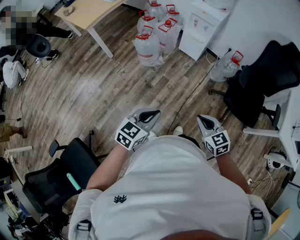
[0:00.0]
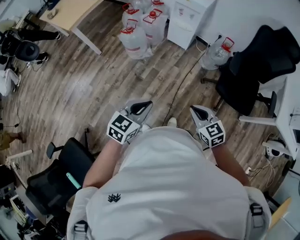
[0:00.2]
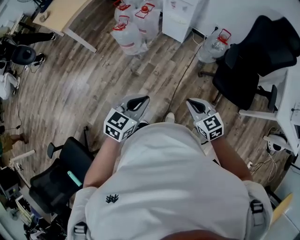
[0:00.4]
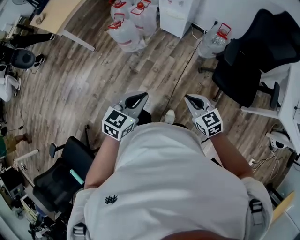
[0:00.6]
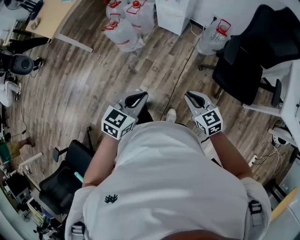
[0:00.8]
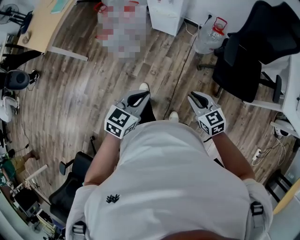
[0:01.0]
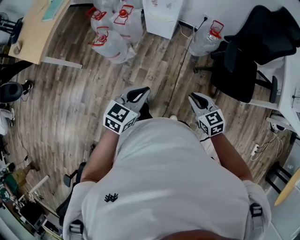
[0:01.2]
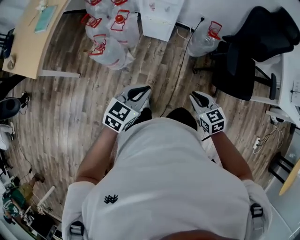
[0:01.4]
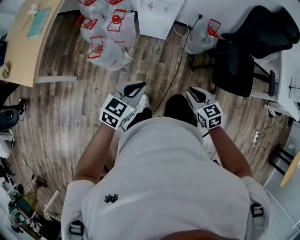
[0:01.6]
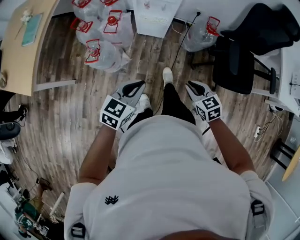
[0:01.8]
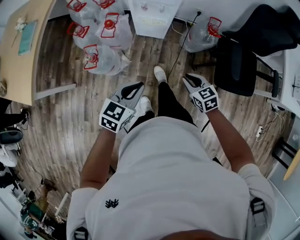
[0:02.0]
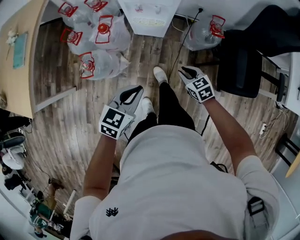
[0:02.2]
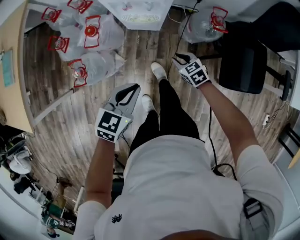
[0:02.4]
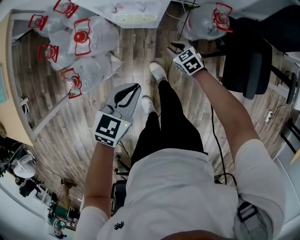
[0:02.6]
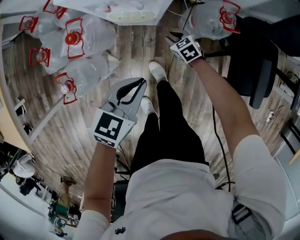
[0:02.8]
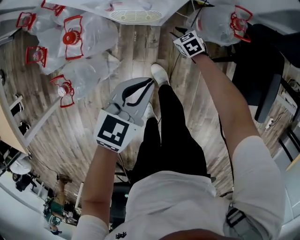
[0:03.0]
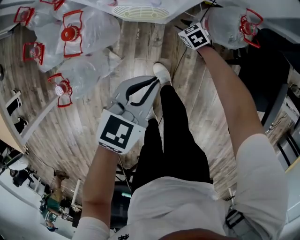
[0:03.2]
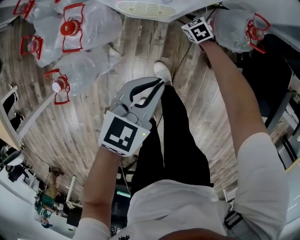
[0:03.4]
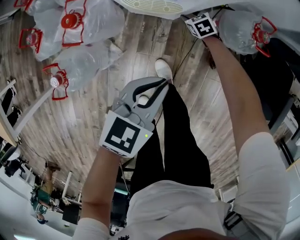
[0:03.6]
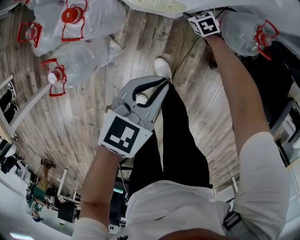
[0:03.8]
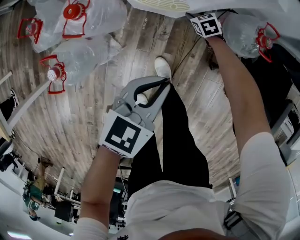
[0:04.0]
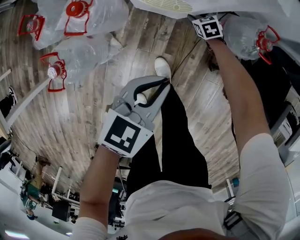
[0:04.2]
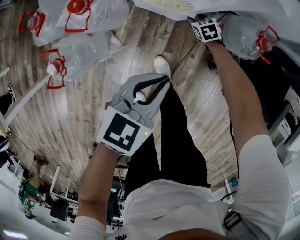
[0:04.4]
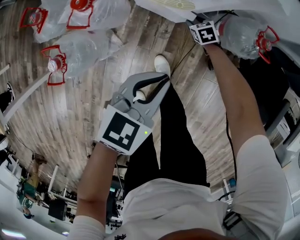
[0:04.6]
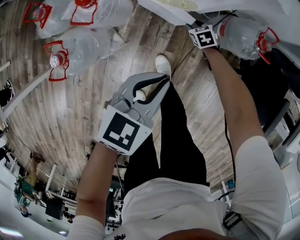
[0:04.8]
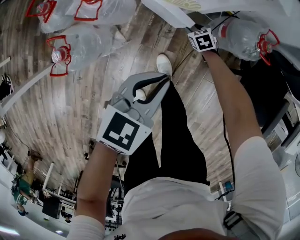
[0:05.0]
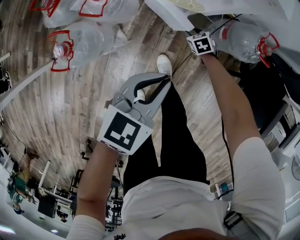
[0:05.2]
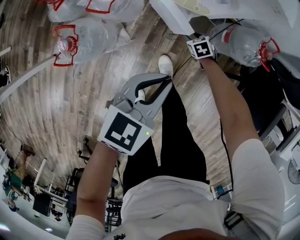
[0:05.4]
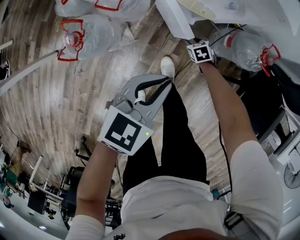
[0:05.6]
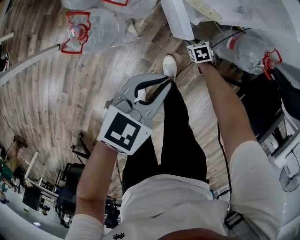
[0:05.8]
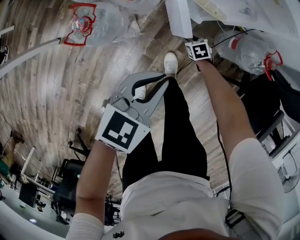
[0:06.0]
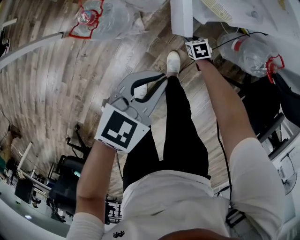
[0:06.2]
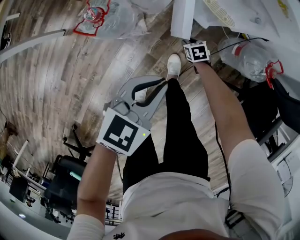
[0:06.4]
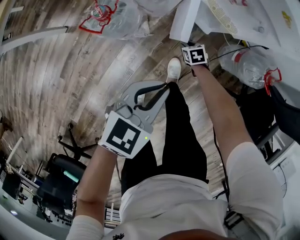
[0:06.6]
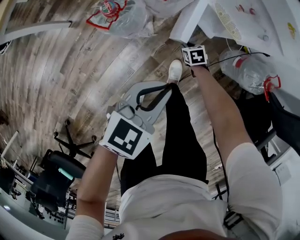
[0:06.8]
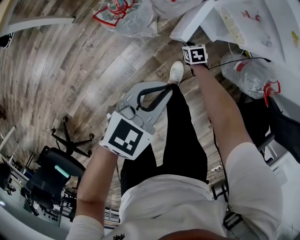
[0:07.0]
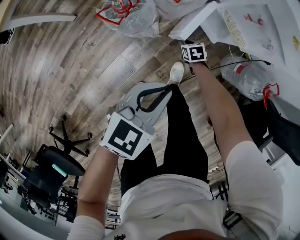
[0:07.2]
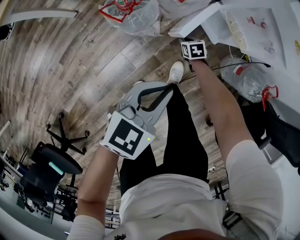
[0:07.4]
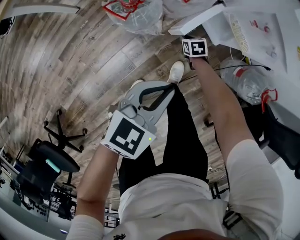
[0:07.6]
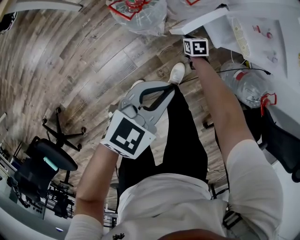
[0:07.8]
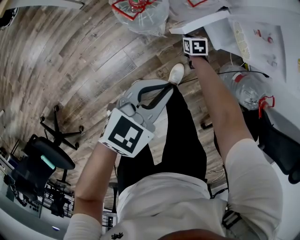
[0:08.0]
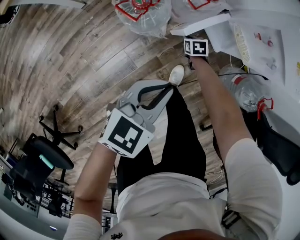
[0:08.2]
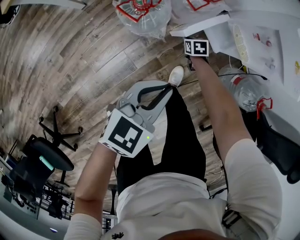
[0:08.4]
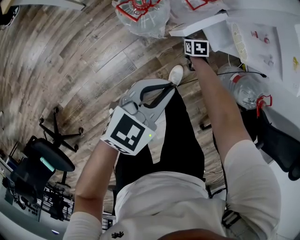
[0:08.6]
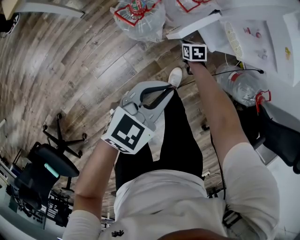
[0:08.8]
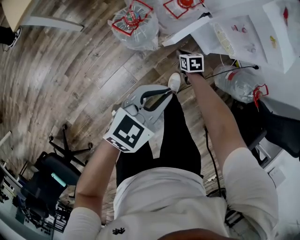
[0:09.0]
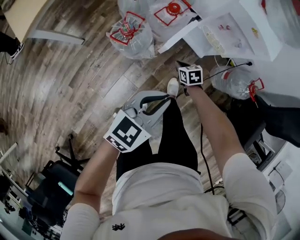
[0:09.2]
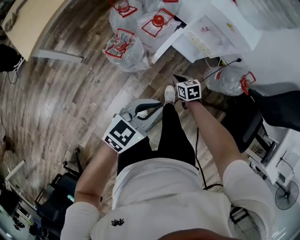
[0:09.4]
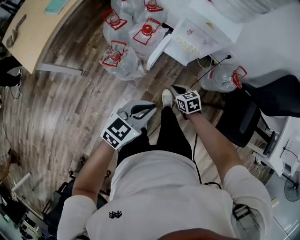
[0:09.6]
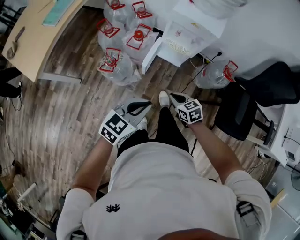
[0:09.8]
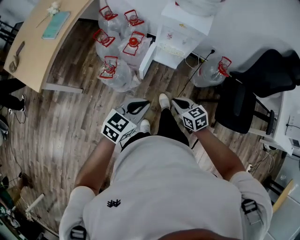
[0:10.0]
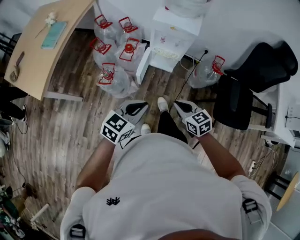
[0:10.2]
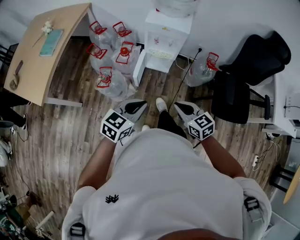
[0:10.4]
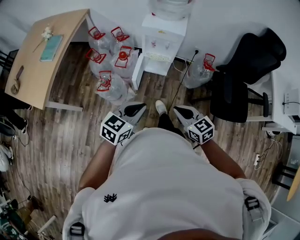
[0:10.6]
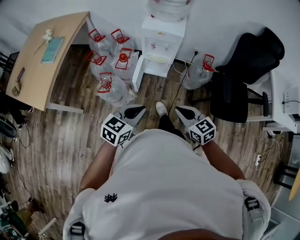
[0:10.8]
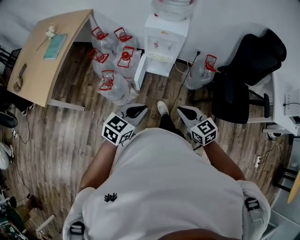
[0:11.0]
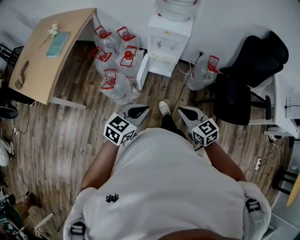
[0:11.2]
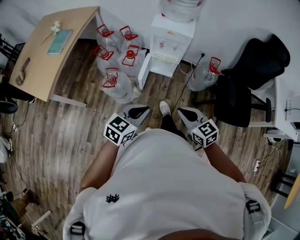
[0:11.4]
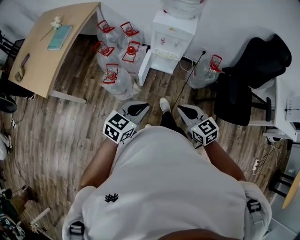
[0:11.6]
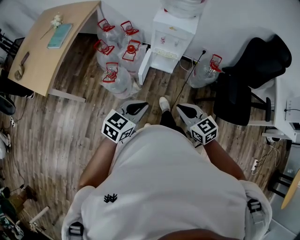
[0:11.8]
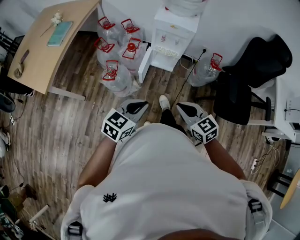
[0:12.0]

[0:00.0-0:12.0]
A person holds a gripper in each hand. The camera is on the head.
0:00.0 to 0:01.6: The grippers both shift forward by some 35 cm. The left gripper turns by roughly 20 degrees; the right gripper swivels some 20 degrees.
0:01.6 to 0:03.0: The right gripper moves forward and downward, approximately 70 cm; the left gripper travels forward and downward by approximately 40 cm.
0:03.0 to 0:04.4: The left gripper shifts by about 5 cm, while the right gripper is displaced downward and forward by roughly 10 cm.
0:04.4 to 0:06.0: The right gripper travels backward and to the left by some 20 cm, while the left gripper travels to the left and backward by some 15 cm.
0:06.0 to 0:07.6: The left gripper goes approximately 10 cm to the left and backward. Meanwhile the right gripper is displaced to the left by some 20 cm.
0:07.6 to 0:09.0: The left gripper moves upward, approximately 5 cm. The right gripper heads upward, covering roughly 10 cm.
0:09.0 to 0:10.4: The right gripper is displaced upward and backward by roughly 50 cm, and tilts its fingers about 30 degrees upward. The left gripper travels upward, backward and to the right by about 20 cm, and turns by approximately 20 degrees.
0:10.4 to 0:12.0: The two grippers go approximately 5 cm backward.

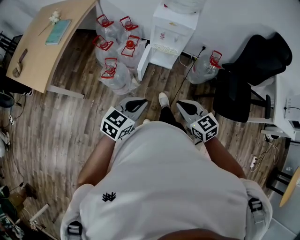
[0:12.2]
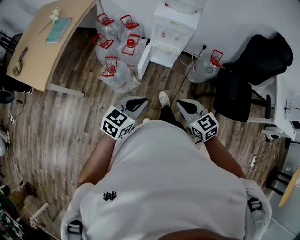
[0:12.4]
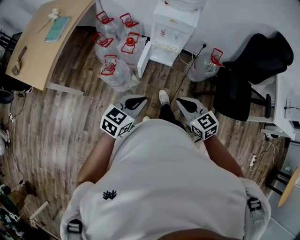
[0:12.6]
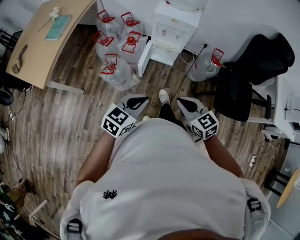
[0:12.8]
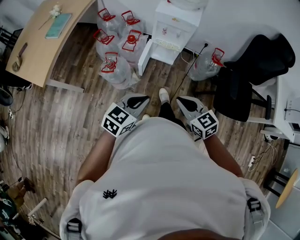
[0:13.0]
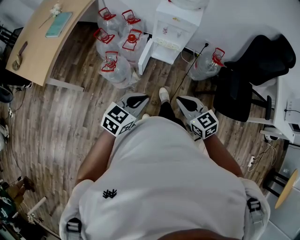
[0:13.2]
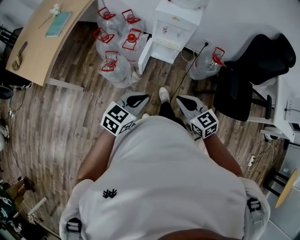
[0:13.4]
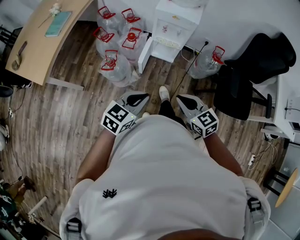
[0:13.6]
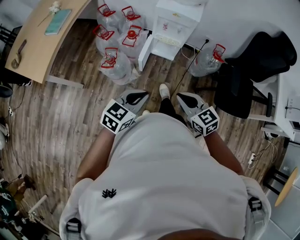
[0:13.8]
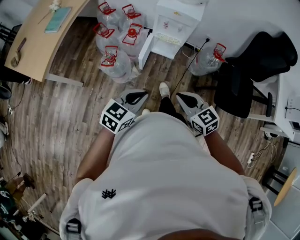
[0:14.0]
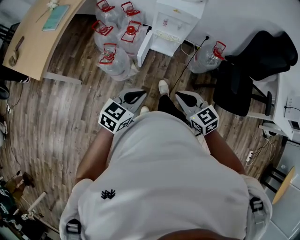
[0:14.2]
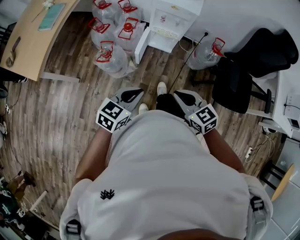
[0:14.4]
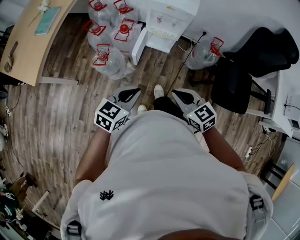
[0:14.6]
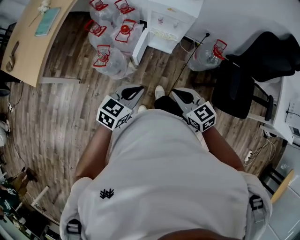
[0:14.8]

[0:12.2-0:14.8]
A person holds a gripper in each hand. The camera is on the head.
0:12.2 to 0:13.4: The two grippers keep their place.
0:13.4 to 0:14.8: The grippers both shift forward by roughly 5 cm.

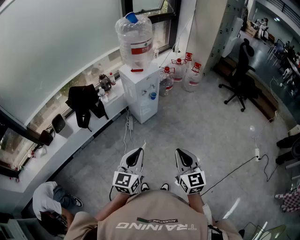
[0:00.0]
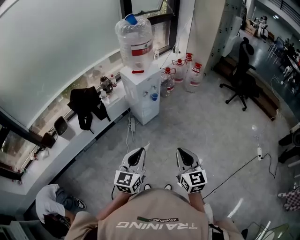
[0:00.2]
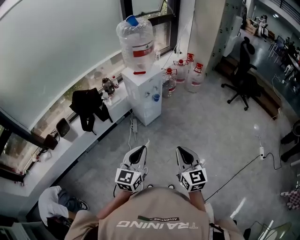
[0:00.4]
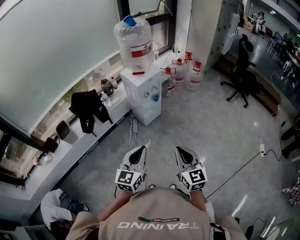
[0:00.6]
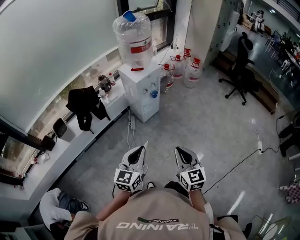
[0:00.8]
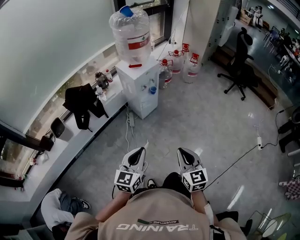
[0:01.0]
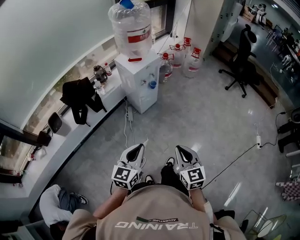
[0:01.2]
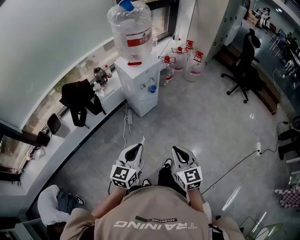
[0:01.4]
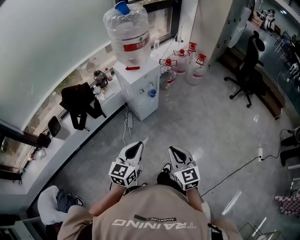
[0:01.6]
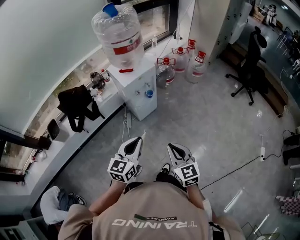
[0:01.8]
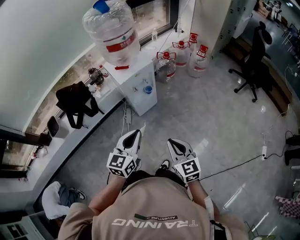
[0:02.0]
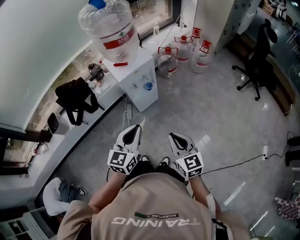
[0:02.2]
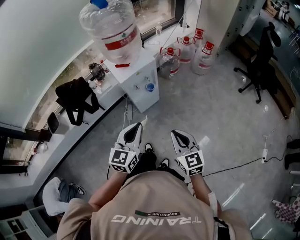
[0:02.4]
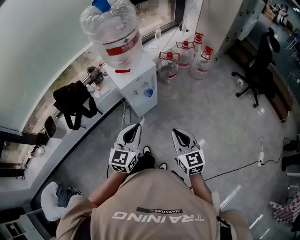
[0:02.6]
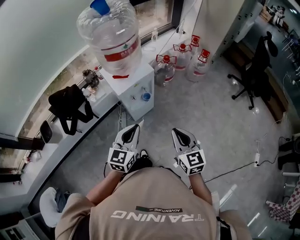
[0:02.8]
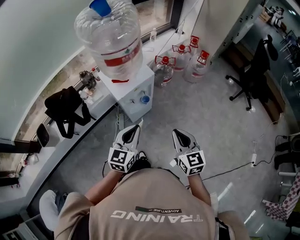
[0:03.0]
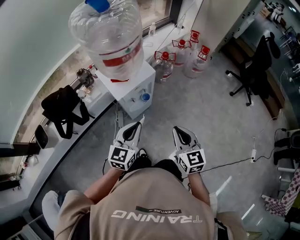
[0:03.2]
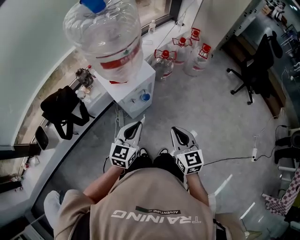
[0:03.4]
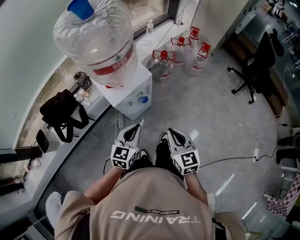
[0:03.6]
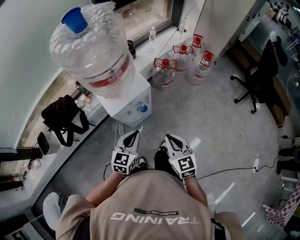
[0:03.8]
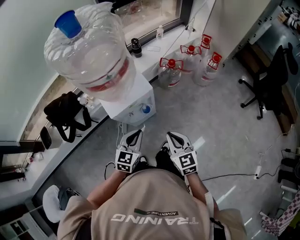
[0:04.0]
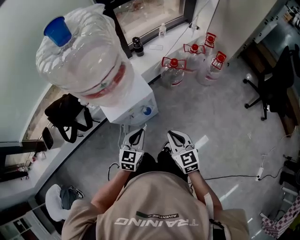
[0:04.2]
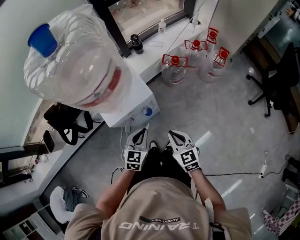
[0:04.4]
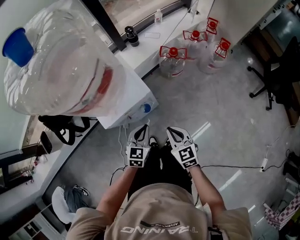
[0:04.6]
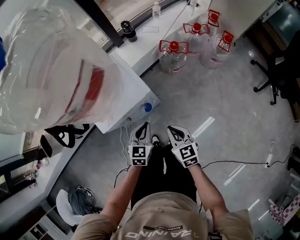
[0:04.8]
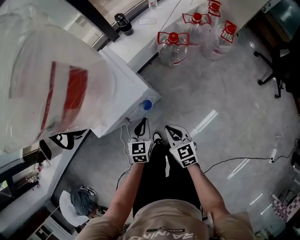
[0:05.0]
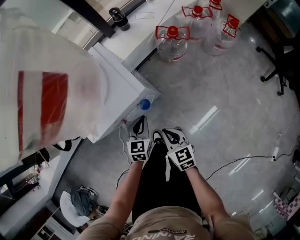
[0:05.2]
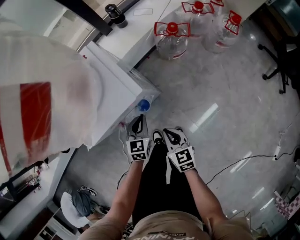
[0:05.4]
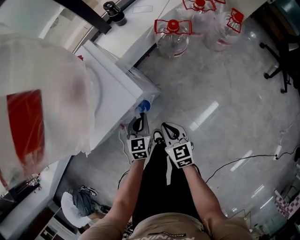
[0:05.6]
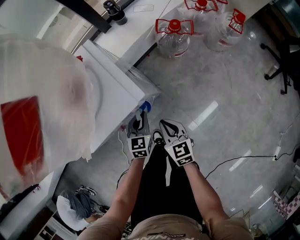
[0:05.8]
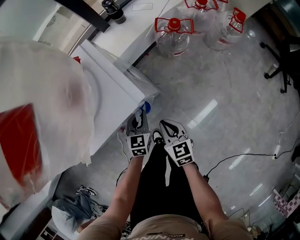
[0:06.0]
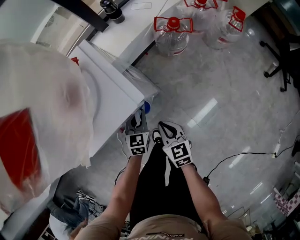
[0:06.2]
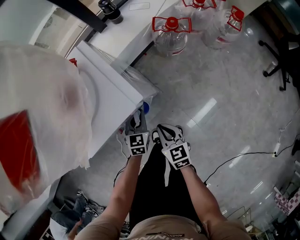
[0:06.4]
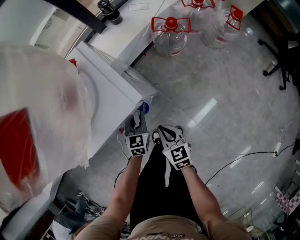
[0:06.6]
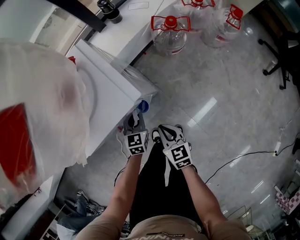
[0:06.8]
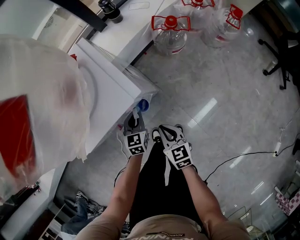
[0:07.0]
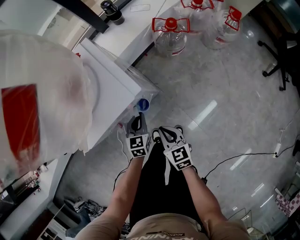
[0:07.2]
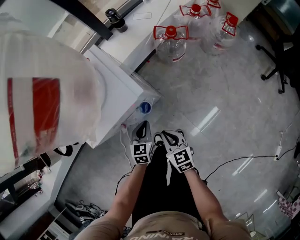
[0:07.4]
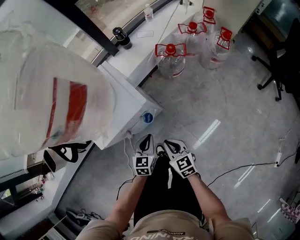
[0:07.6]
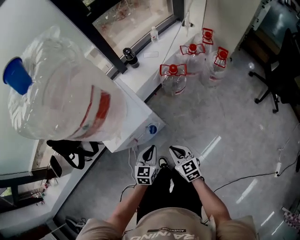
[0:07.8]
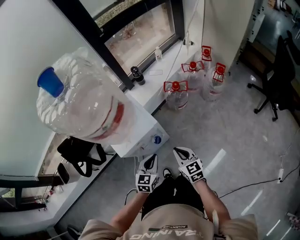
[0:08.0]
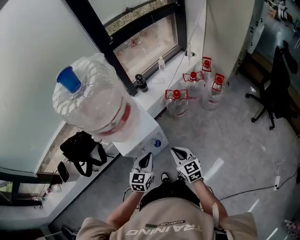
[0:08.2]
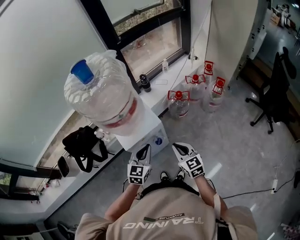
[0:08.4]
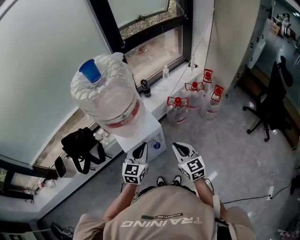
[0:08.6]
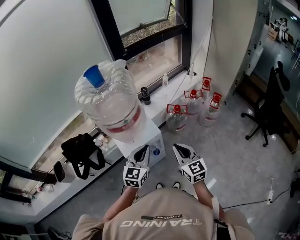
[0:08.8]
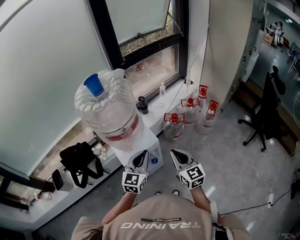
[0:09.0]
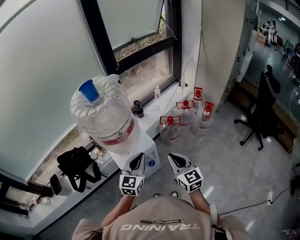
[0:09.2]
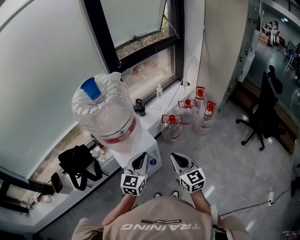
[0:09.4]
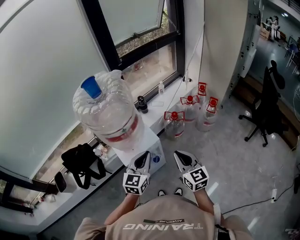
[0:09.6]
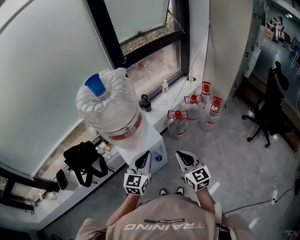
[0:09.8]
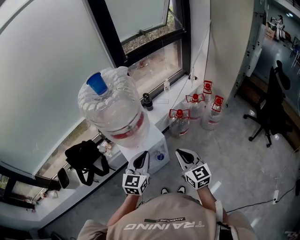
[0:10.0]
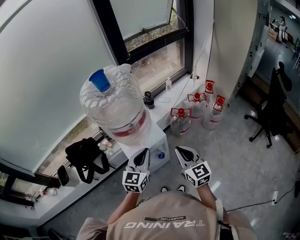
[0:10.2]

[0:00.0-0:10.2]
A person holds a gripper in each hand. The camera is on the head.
0:00.0 to 0:01.4: The grippers both shift forward and downward by about 10 cm.
0:01.4 to 0:03.0: Both grippers travel together forward, some 30 cm.
0:03.0 to 0:04.4: The left gripper heads forward, downward and to the right, covering about 25 cm; the right gripper is displaced forward and downward by some 25 cm.
0:04.4 to 0:05.8: The left gripper shifts approximately 25 cm downward and forward; the right gripper heads downward, covering about 25 cm.
0:05.8 to 0:07.2: The grippers make only small movements.
0:07.2 to 0:08.8: The two grippers go some 40 cm upward. The right gripper swivels approximately 30 degrees, while the left gripper turns by some 30 degrees.
0:08.8 to 0:10.2: The grippers stay close to where they were, moving slightly.
